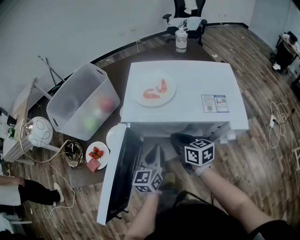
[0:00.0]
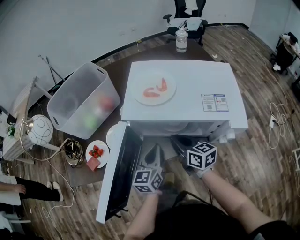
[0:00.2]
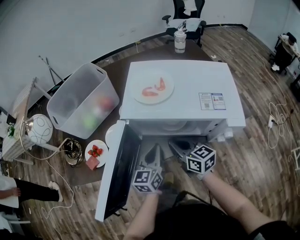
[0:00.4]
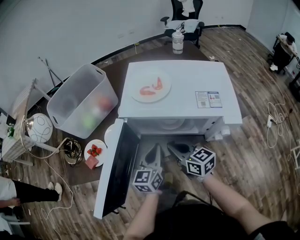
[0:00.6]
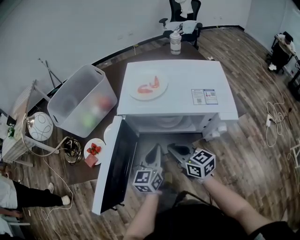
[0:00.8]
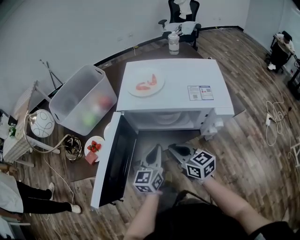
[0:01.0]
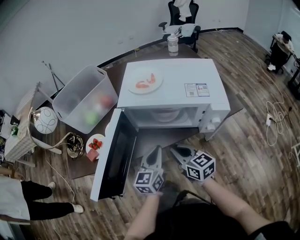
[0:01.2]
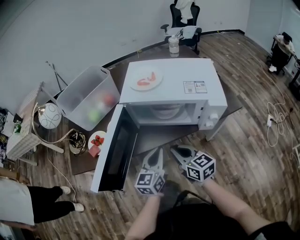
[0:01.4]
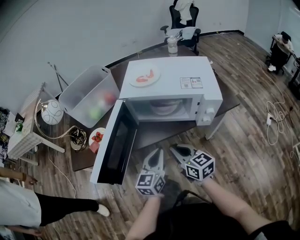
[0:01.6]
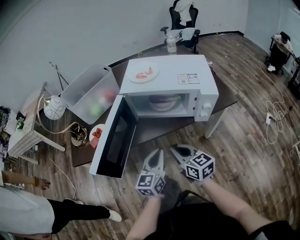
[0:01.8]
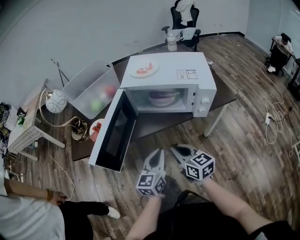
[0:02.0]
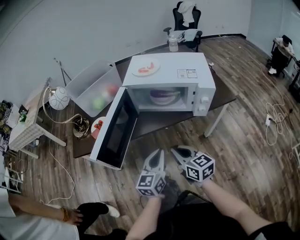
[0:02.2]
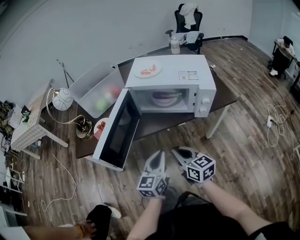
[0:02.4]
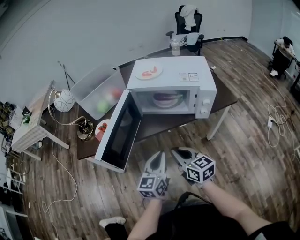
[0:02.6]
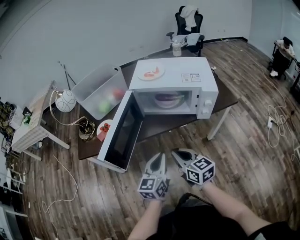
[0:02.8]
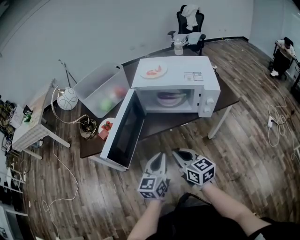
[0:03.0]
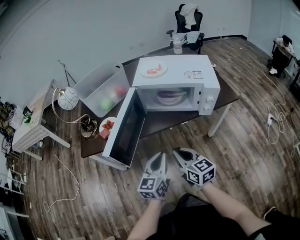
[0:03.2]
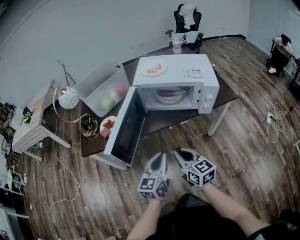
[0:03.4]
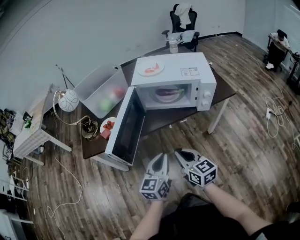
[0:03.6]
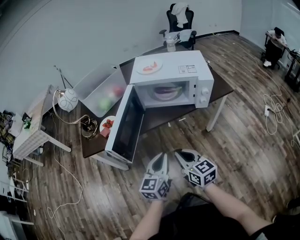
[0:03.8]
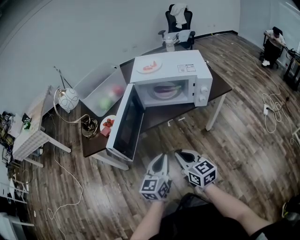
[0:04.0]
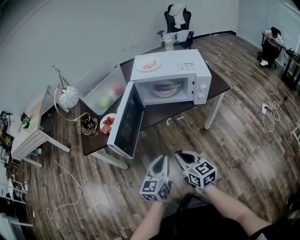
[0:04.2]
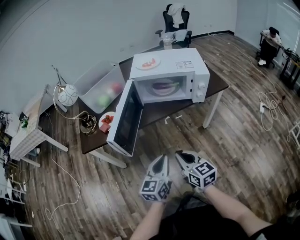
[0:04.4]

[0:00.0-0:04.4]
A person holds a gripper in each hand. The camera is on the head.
0.0 to 1.4 s: The two grippers go some 15 cm backward.
1.4 to 3.0 s: Both grippers move backward, about 15 cm.
3.0 to 4.4 s: Both grippers move backward, roughly 10 cm.

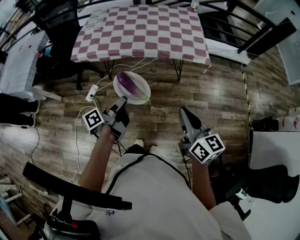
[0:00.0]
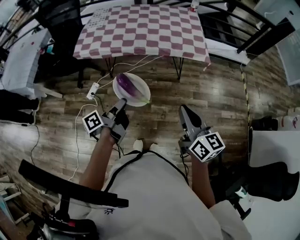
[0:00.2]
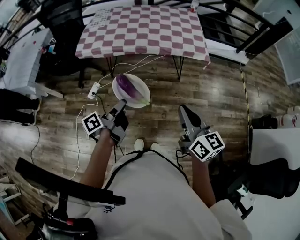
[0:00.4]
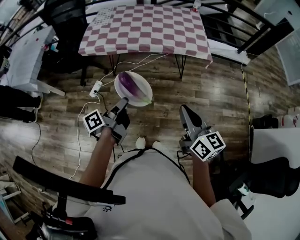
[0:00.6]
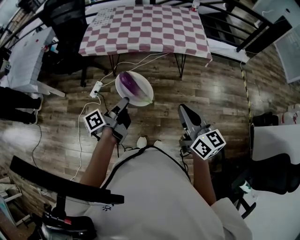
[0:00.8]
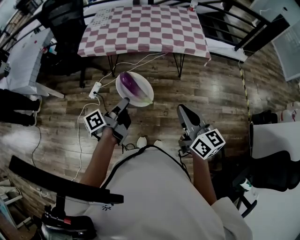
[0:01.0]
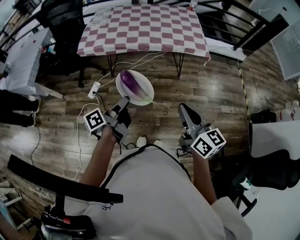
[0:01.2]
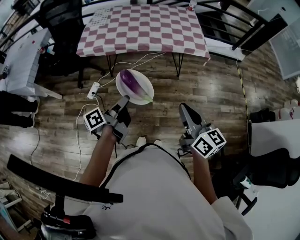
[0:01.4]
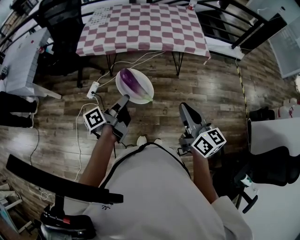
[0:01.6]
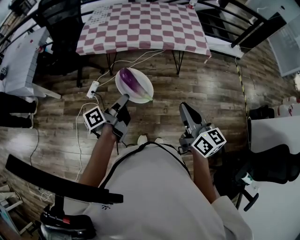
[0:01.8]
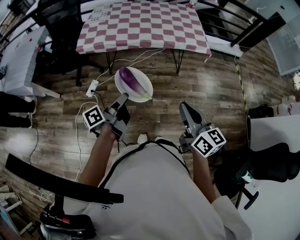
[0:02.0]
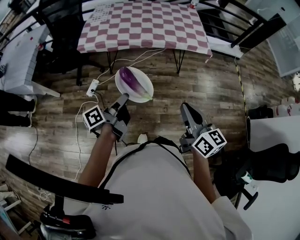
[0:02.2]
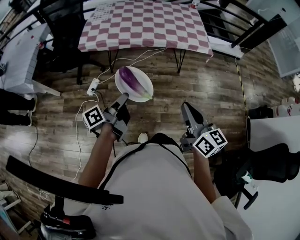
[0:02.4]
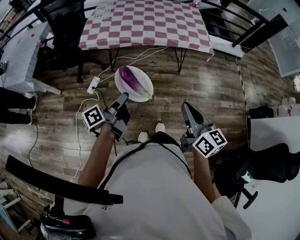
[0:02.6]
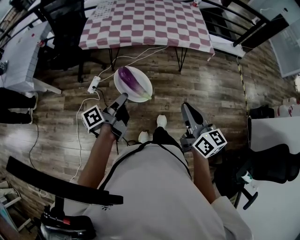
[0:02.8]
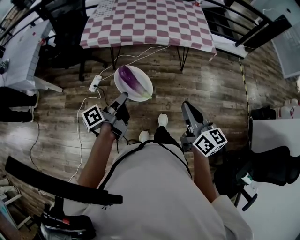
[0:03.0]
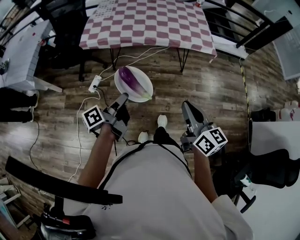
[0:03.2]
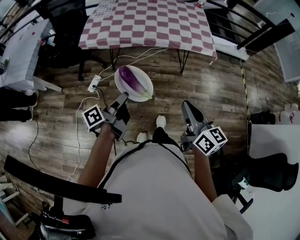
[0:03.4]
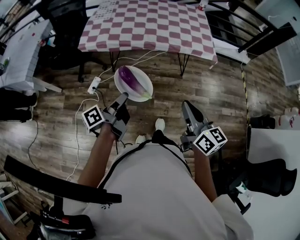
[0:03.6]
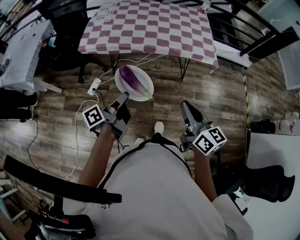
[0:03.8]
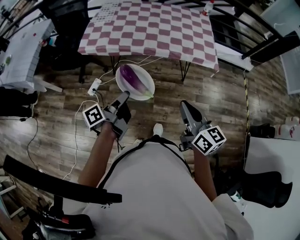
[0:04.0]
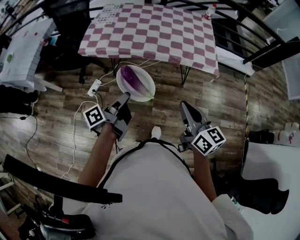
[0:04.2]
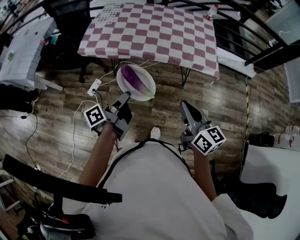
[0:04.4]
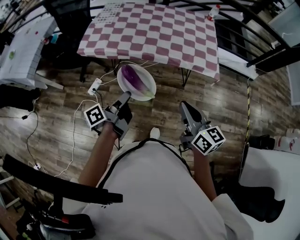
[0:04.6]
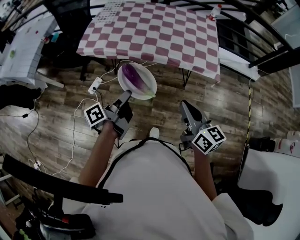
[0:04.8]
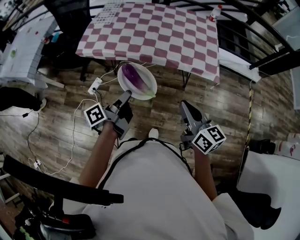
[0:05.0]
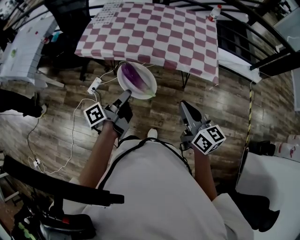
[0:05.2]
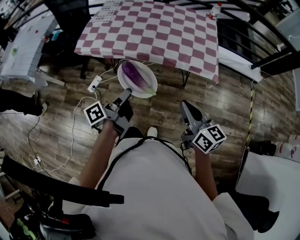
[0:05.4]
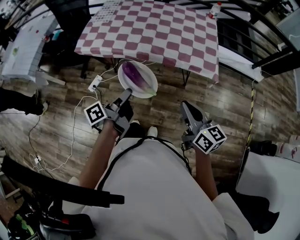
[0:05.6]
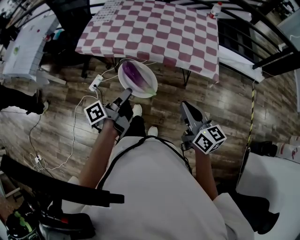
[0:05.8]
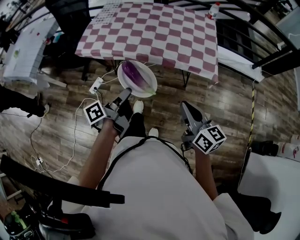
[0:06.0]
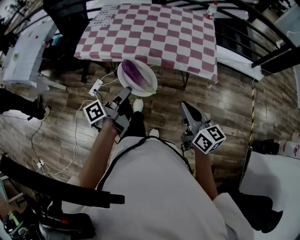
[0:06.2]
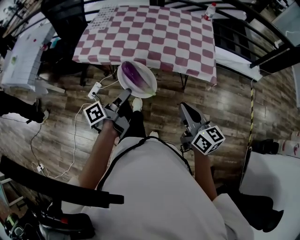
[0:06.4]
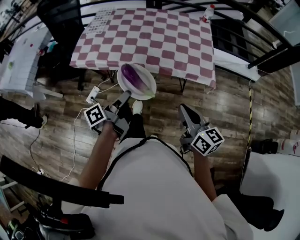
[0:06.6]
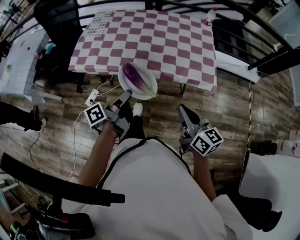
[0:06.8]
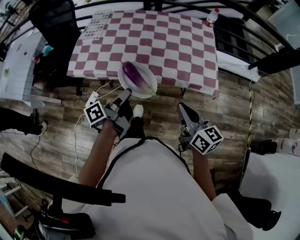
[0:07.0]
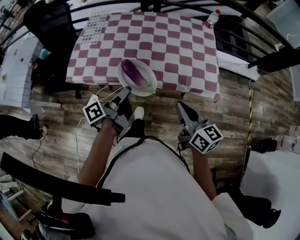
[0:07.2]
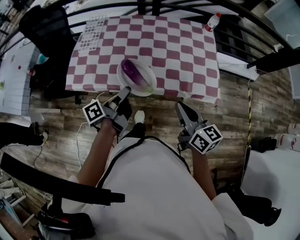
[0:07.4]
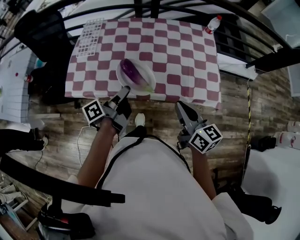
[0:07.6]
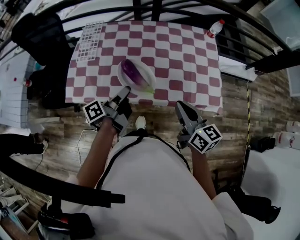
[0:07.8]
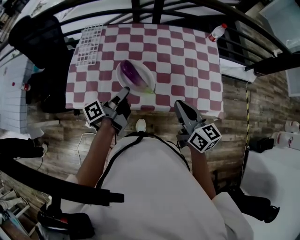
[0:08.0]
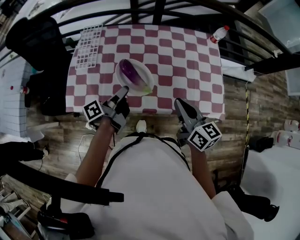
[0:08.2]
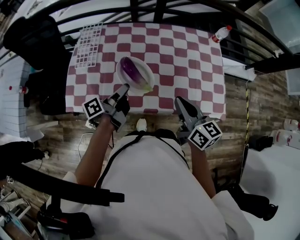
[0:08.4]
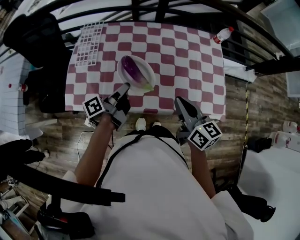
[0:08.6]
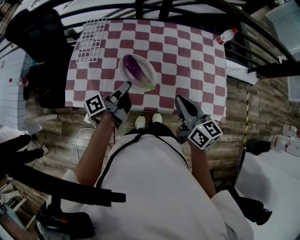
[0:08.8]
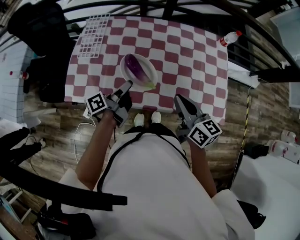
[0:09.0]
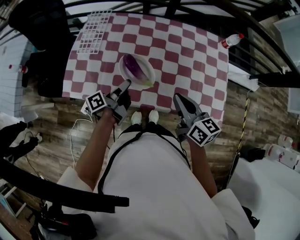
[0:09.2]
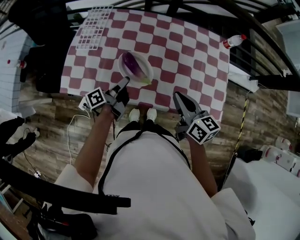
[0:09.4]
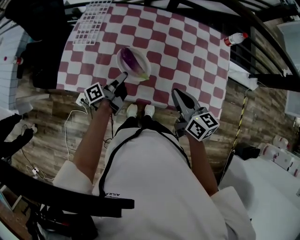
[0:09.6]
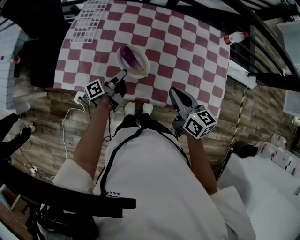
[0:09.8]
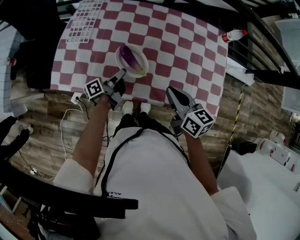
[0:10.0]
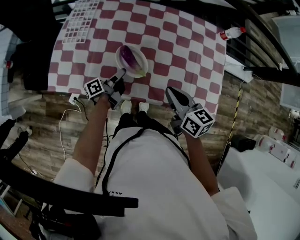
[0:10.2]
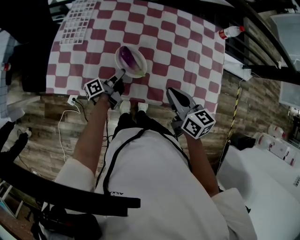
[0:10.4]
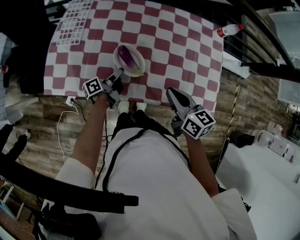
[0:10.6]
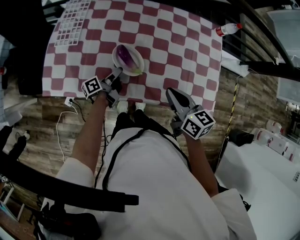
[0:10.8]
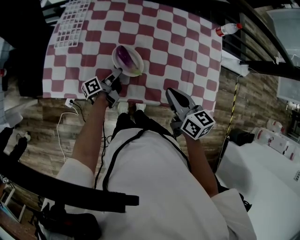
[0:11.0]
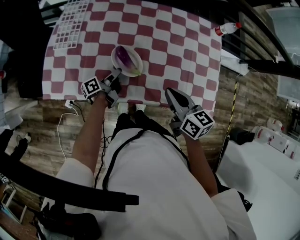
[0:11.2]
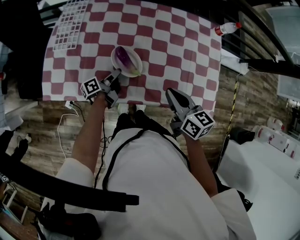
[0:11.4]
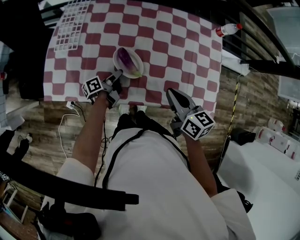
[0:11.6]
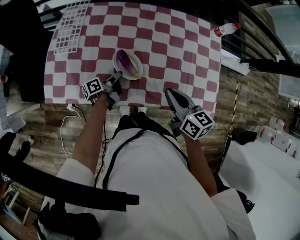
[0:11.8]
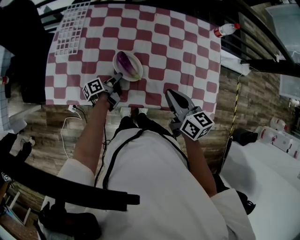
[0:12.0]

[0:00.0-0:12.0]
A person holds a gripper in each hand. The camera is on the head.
0.0 to 1.6 s: The right gripper shifts by about 15 cm.
3.0 to 4.4 s: The right gripper moves approximately 20 cm.
4.4 to 6.0 s: The right gripper changes place by roughly 10 cm.
6.0 to 7.6 s: The right gripper ends up roughly 30 cm from where it was.
7.6 to 9.0 s: The right gripper ends up about 15 cm from where it was.
9.0 to 10.4 s: The right gripper travels downward by about 5 cm.

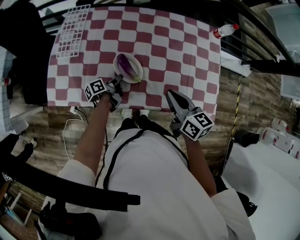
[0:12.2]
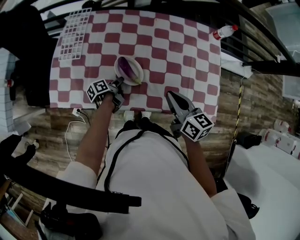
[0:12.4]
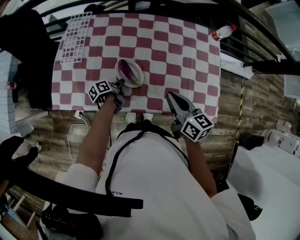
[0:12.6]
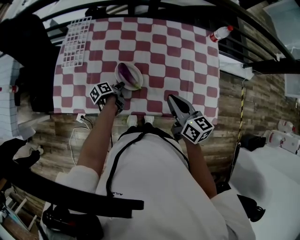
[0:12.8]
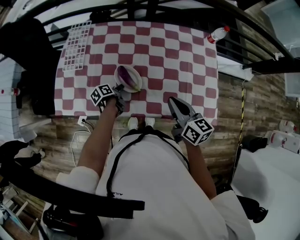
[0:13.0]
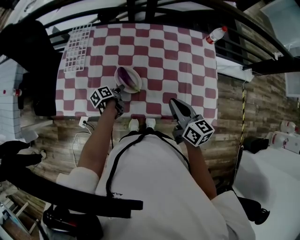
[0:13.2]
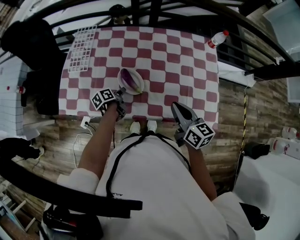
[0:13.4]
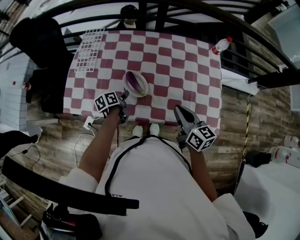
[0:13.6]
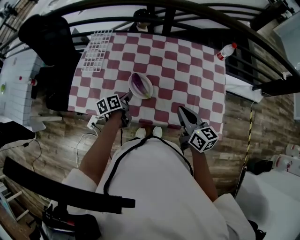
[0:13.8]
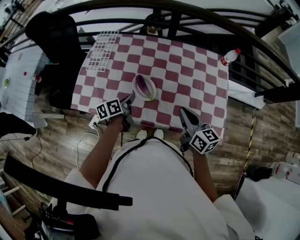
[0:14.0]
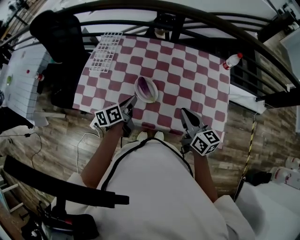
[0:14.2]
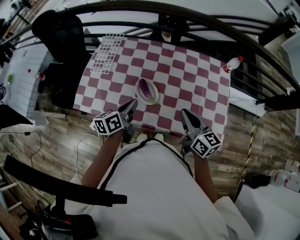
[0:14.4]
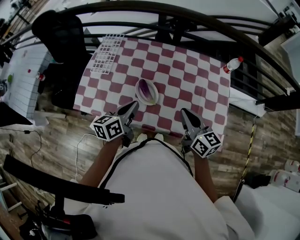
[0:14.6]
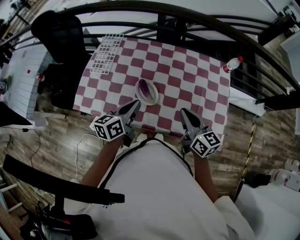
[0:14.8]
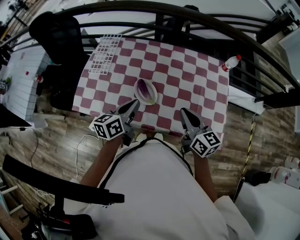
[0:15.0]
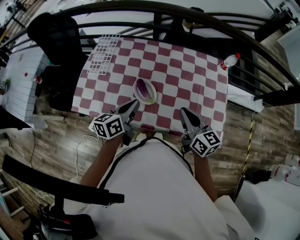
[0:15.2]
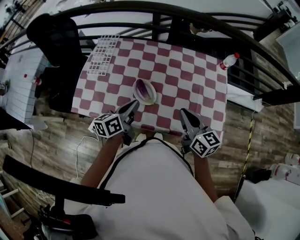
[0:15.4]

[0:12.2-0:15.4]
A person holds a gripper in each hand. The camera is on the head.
12.2 to 13.8 s: The right gripper changes place by some 5 cm.

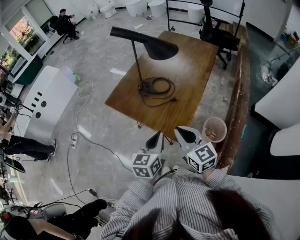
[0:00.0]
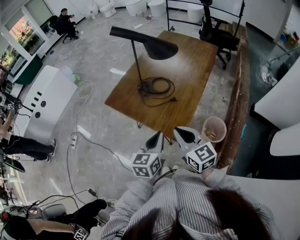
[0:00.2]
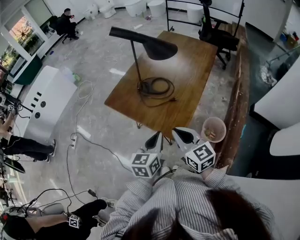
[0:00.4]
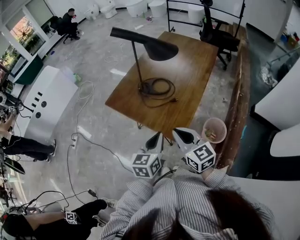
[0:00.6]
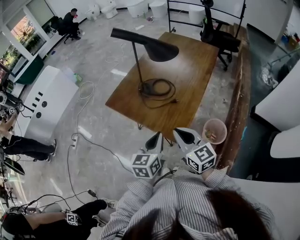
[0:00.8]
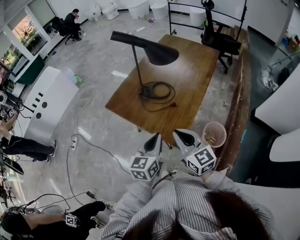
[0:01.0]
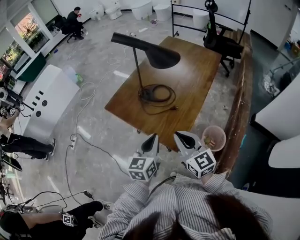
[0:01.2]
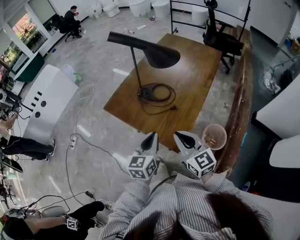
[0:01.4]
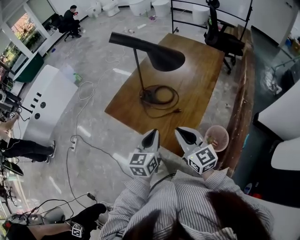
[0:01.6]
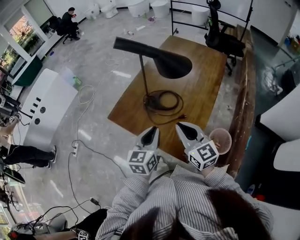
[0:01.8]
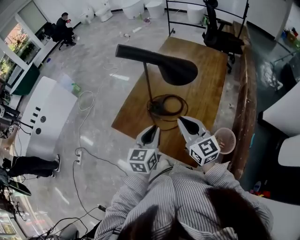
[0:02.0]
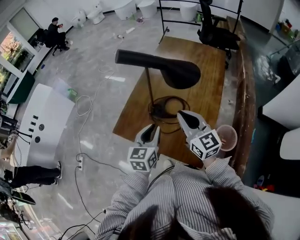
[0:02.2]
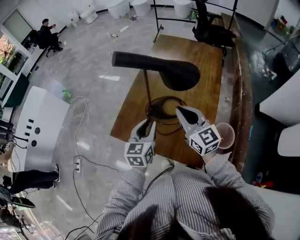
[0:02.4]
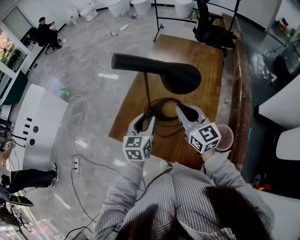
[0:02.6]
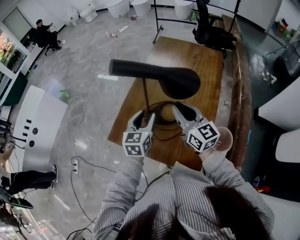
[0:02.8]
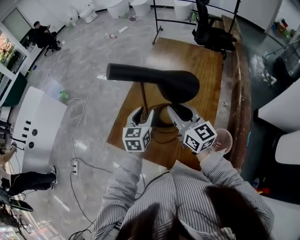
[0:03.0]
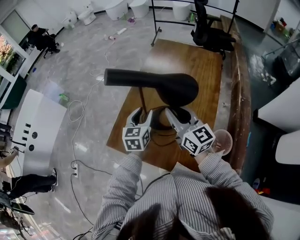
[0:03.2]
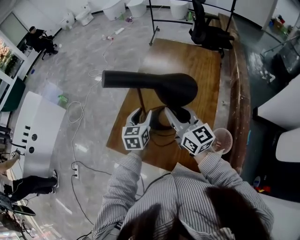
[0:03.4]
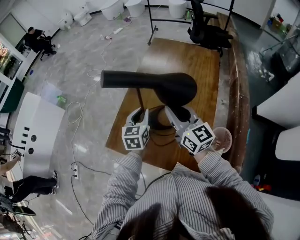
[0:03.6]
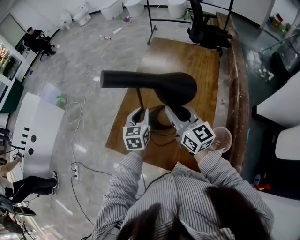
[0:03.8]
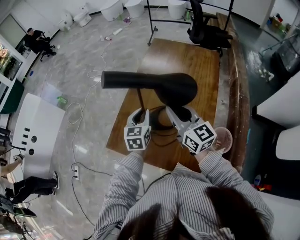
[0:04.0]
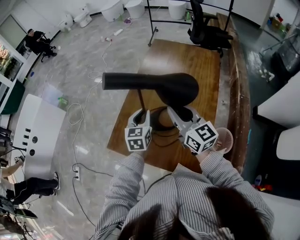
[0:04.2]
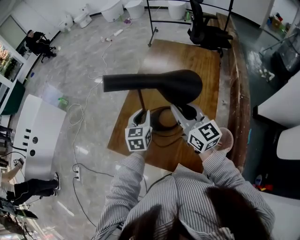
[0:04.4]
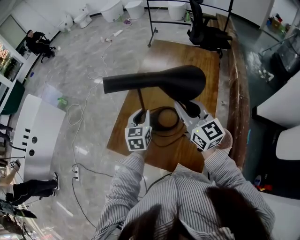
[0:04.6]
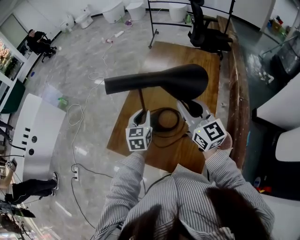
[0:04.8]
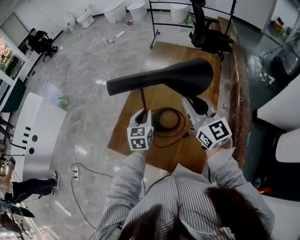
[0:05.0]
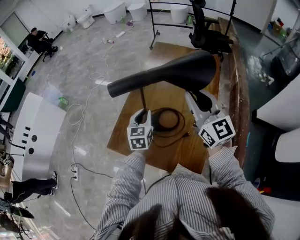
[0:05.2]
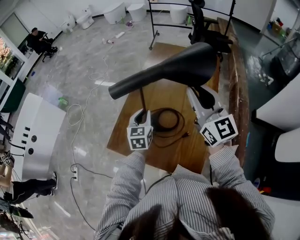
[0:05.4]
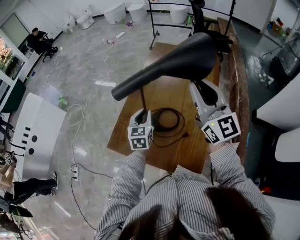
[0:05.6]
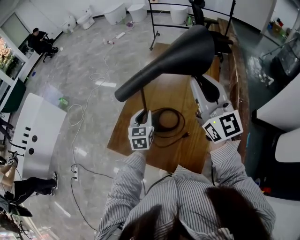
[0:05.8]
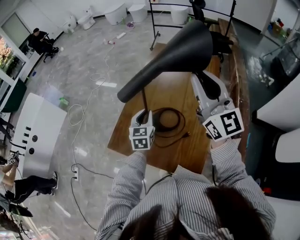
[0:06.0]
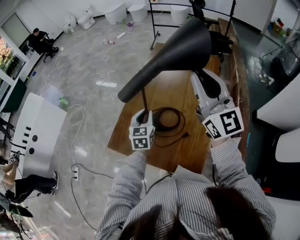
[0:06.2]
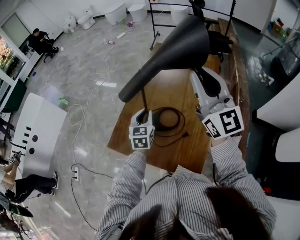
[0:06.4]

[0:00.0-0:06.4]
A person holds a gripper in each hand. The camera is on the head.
0.0 to 1.6 s: The two grippers go some 10 cm forward.
1.6 to 3.2 s: Both grippers move forward, some 25 cm. The left gripper opens.
3.2 to 4.8 s: The right gripper ends up approximately 5 cm from where it was, while the left gripper closes up.
4.8 to 6.4 s: The right gripper is displaced upward by about 15 cm, and swivels about 20 degrees.
